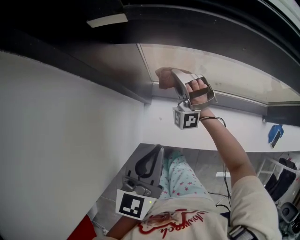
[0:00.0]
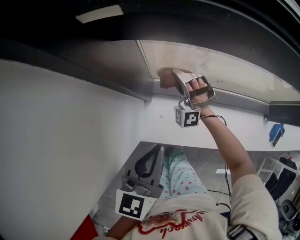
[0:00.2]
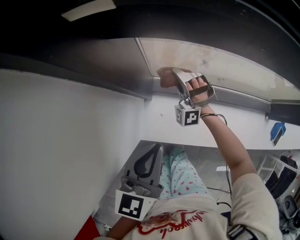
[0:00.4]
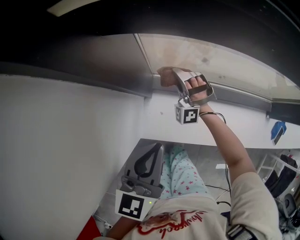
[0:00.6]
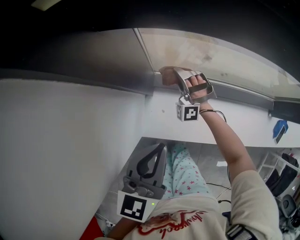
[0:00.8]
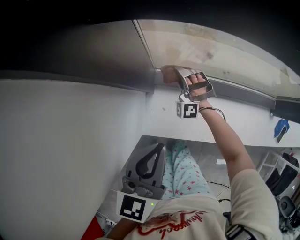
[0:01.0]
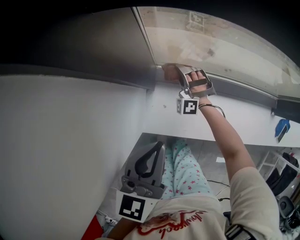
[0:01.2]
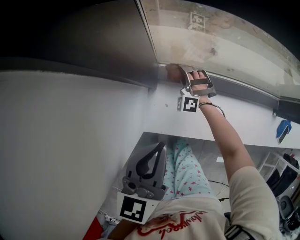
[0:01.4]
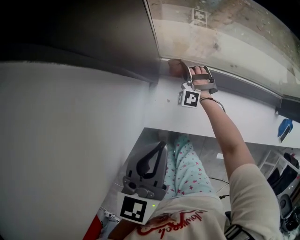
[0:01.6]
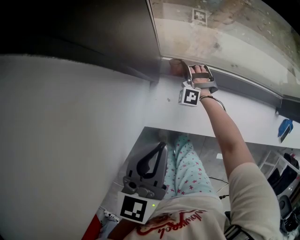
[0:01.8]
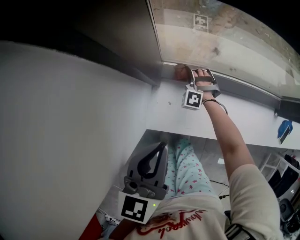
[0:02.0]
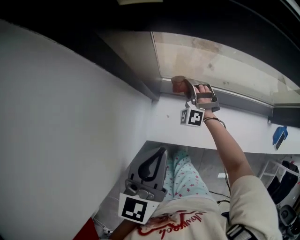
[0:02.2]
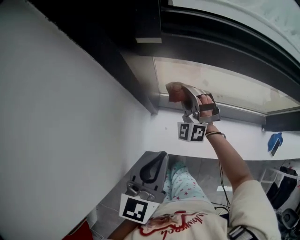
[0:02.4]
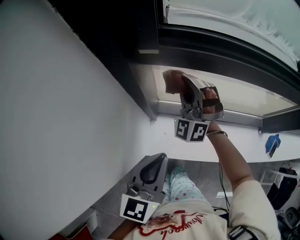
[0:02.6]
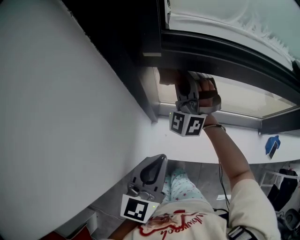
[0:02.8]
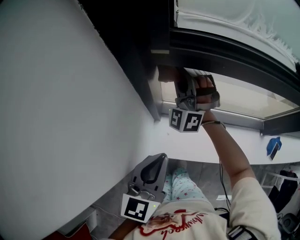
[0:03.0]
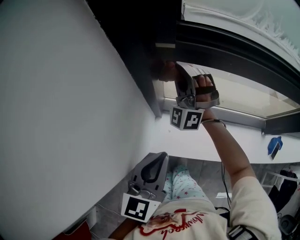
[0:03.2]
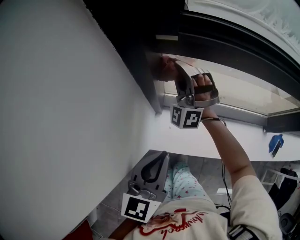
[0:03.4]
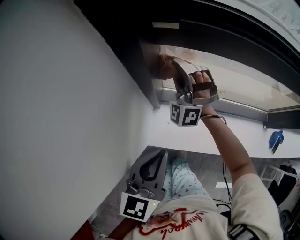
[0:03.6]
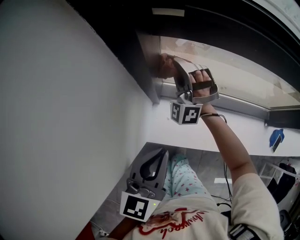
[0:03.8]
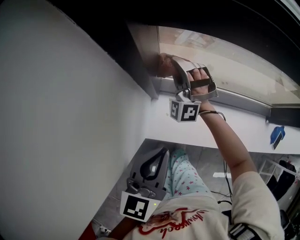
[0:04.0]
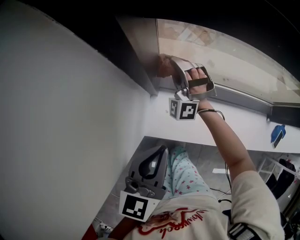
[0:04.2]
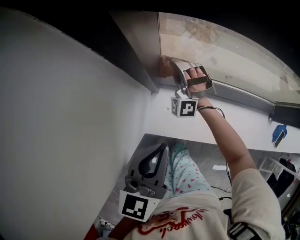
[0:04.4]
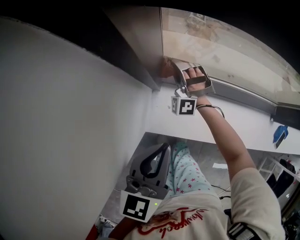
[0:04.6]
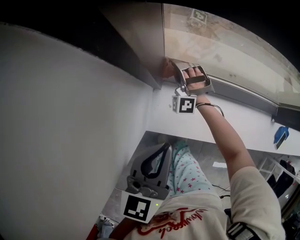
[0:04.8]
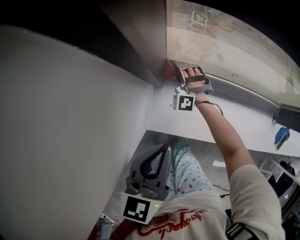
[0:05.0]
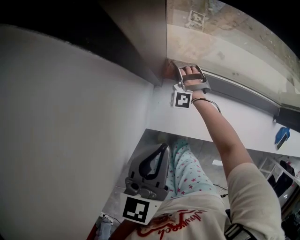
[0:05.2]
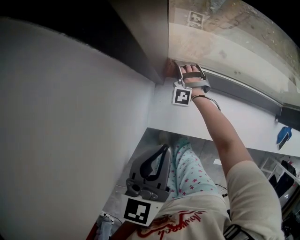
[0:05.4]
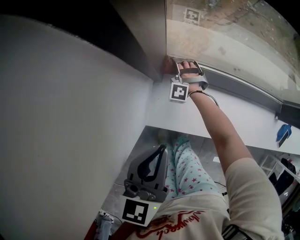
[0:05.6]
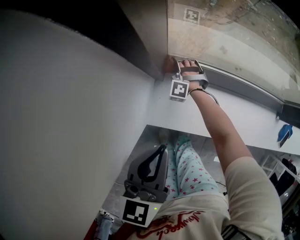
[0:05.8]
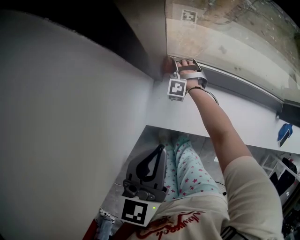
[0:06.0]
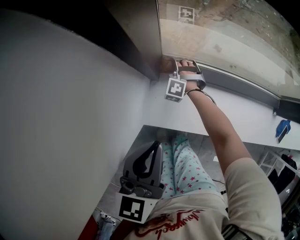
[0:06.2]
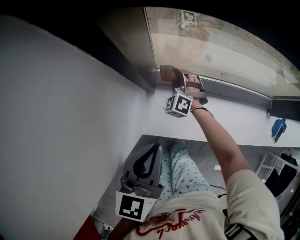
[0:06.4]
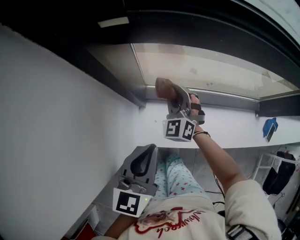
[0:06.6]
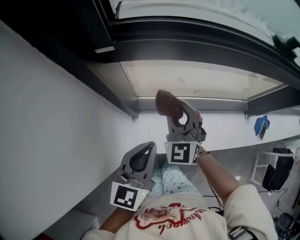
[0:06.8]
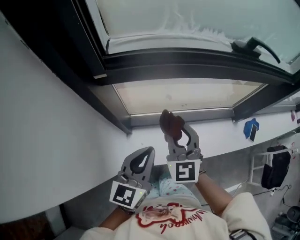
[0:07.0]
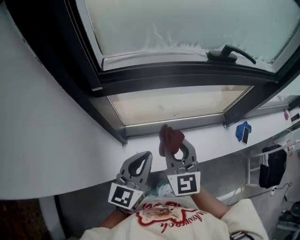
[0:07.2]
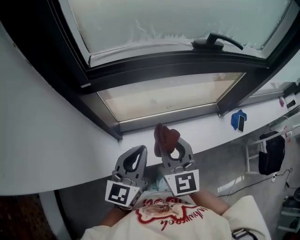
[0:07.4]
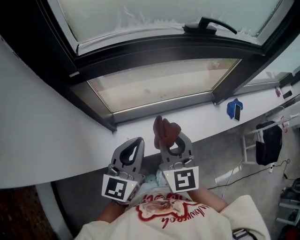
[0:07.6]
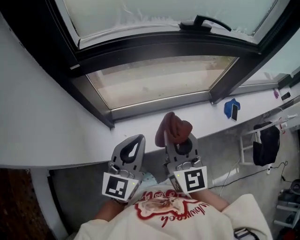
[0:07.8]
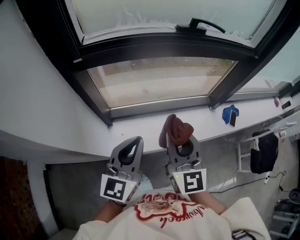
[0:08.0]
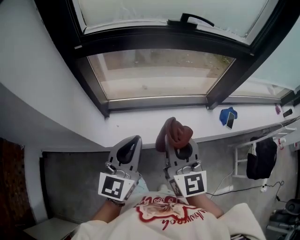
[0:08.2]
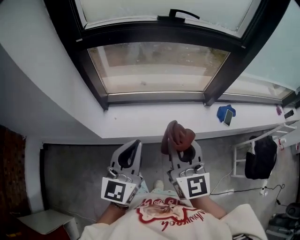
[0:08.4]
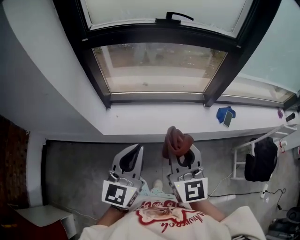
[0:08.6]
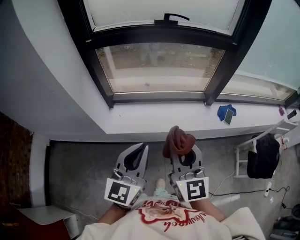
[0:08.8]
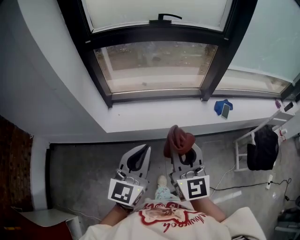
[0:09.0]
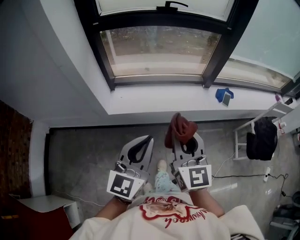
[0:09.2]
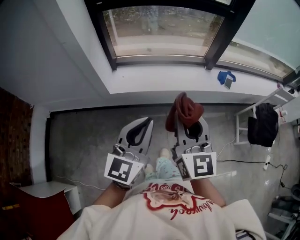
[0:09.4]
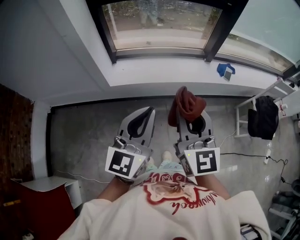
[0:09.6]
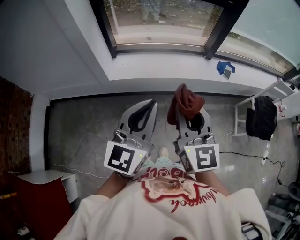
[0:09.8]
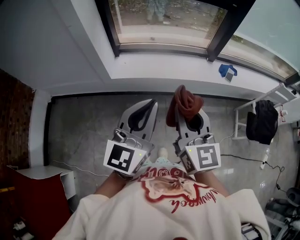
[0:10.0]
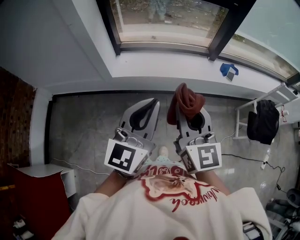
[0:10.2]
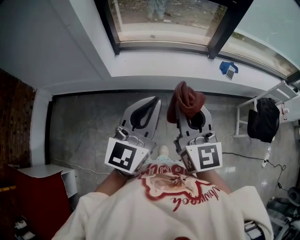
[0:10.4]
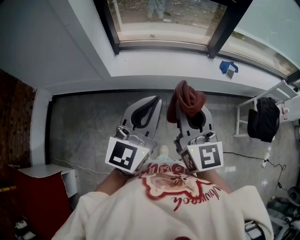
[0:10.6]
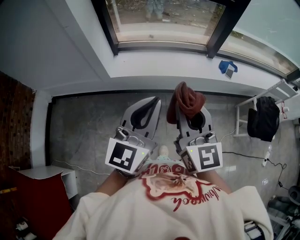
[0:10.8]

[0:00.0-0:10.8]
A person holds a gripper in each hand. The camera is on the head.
0:00.0 to 0:01.6: The right gripper heads downward, covering about 20 cm, and turns by about 20 degrees; the left gripper moves downward, approximately 5 cm.
0:01.6 to 0:03.0: The left gripper moves upward, about 10 cm, while the right gripper moves upward, roughly 40 cm, and tips its fingers upward by about 30 degrees.
0:03.0 to 0:04.6: The right gripper travels downward by about 30 cm, and rotates approximately 20 degrees. Meanwhile the left gripper is displaced downward by some 10 cm.
0:04.6 to 0:06.2: The right gripper goes roughly 15 cm downward, and swivels some 30 degrees.
0:06.2 to 0:07.8: The right gripper shifts about 60 cm upward, to the right and backward, and twists roughly 80 degrees clockwise, seen from behind, while the left gripper moves upward and to the right, some 25 cm, and changes its angle by about 40 degrees.
0:07.8 to 0:09.2: The grippers both shift backward and to the right by roughly 40 cm.
0:09.2 to 0:10.8: Both grippers move backward, roughly 10 cm.

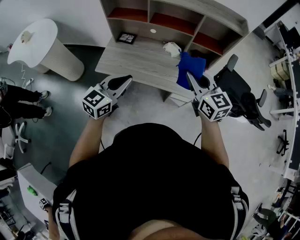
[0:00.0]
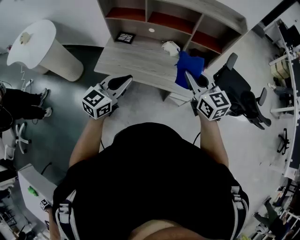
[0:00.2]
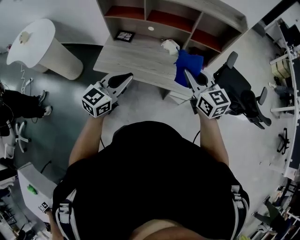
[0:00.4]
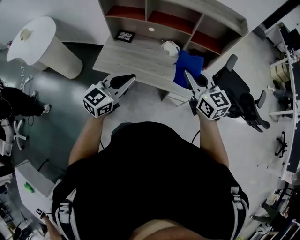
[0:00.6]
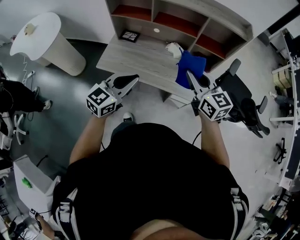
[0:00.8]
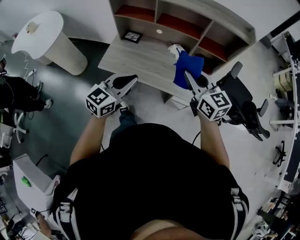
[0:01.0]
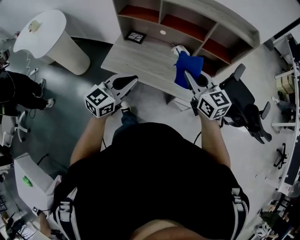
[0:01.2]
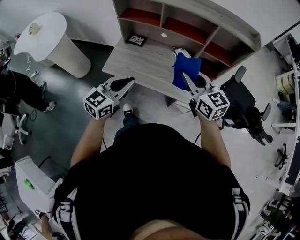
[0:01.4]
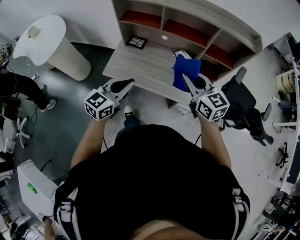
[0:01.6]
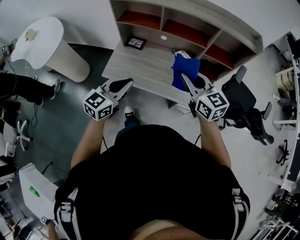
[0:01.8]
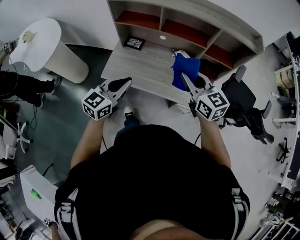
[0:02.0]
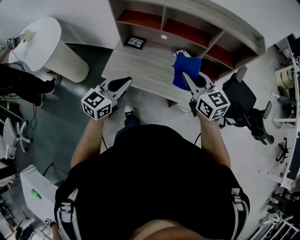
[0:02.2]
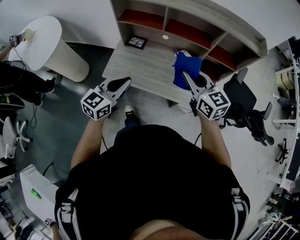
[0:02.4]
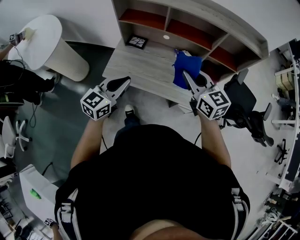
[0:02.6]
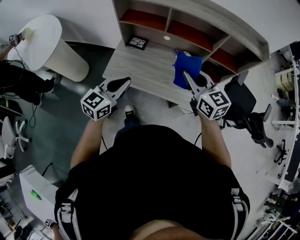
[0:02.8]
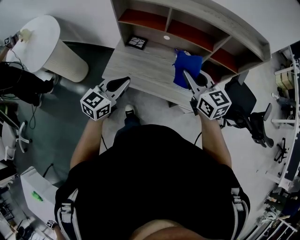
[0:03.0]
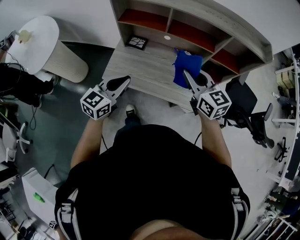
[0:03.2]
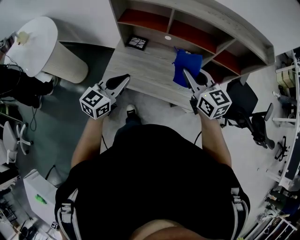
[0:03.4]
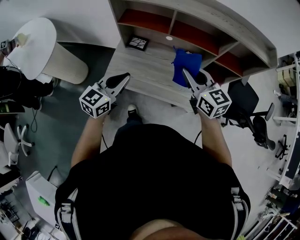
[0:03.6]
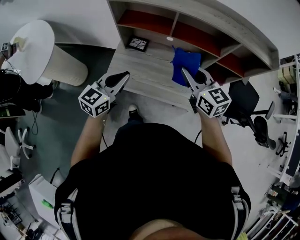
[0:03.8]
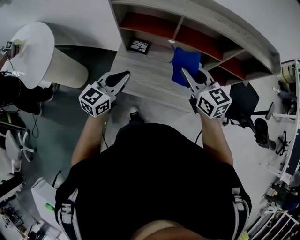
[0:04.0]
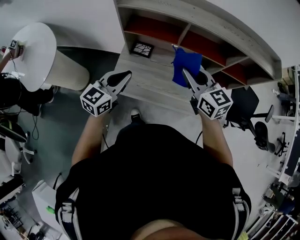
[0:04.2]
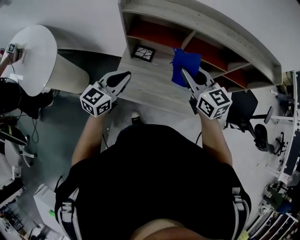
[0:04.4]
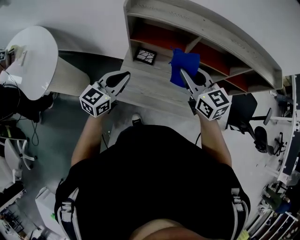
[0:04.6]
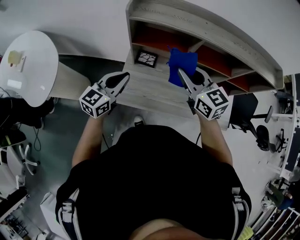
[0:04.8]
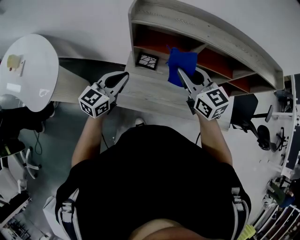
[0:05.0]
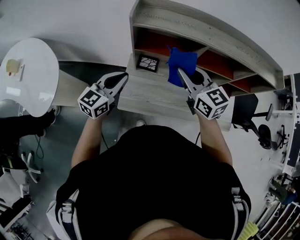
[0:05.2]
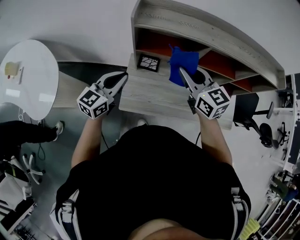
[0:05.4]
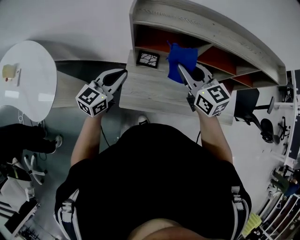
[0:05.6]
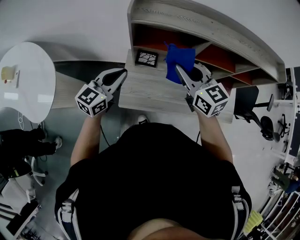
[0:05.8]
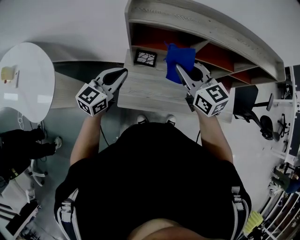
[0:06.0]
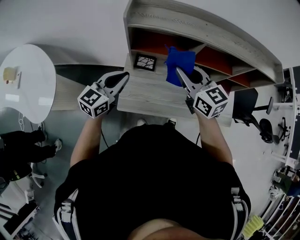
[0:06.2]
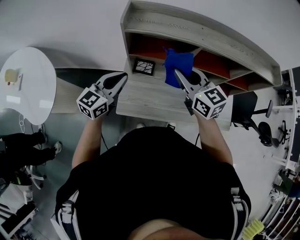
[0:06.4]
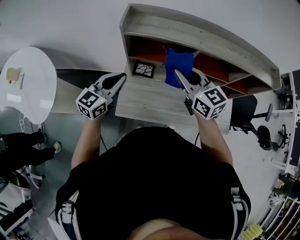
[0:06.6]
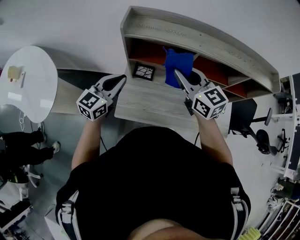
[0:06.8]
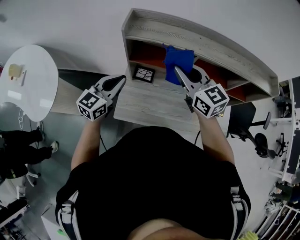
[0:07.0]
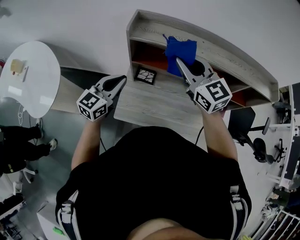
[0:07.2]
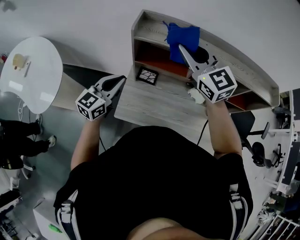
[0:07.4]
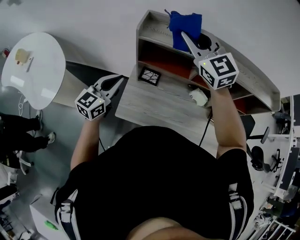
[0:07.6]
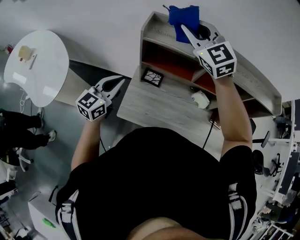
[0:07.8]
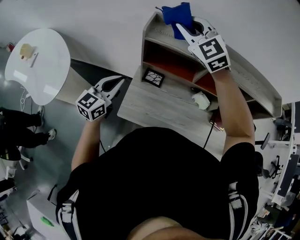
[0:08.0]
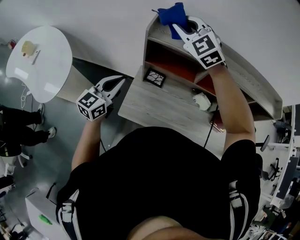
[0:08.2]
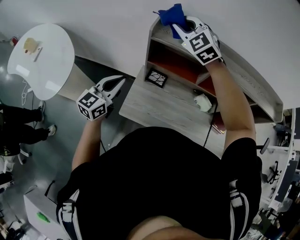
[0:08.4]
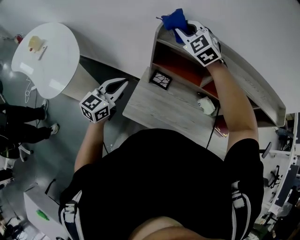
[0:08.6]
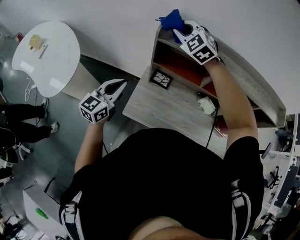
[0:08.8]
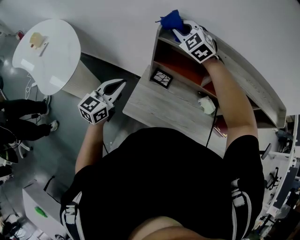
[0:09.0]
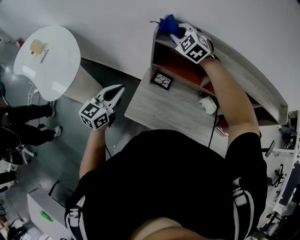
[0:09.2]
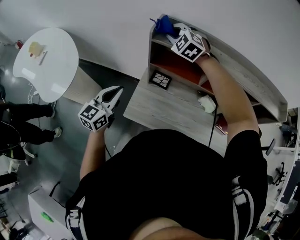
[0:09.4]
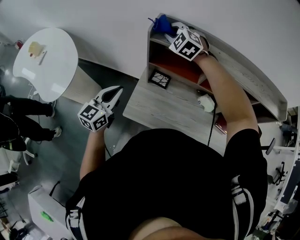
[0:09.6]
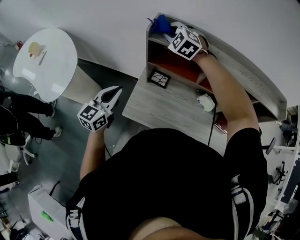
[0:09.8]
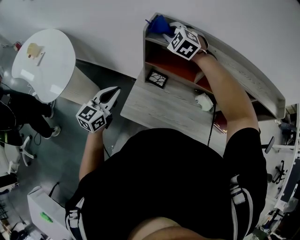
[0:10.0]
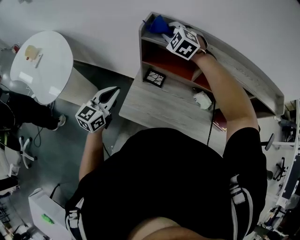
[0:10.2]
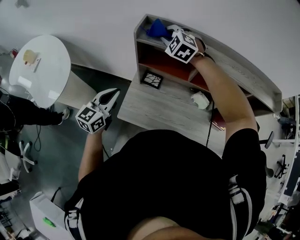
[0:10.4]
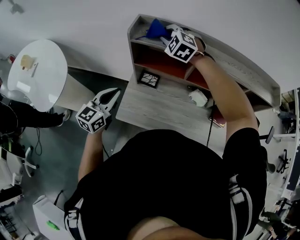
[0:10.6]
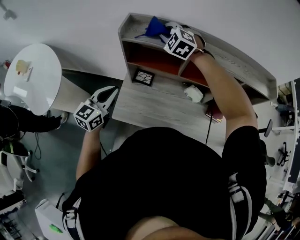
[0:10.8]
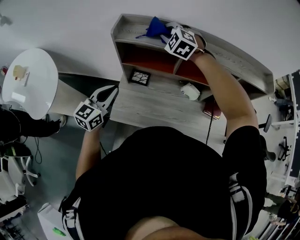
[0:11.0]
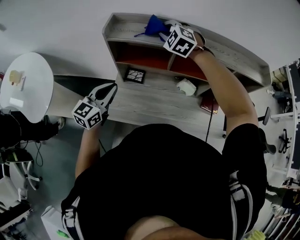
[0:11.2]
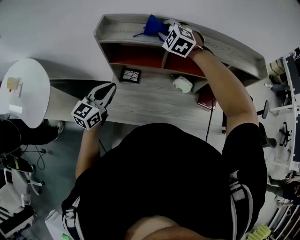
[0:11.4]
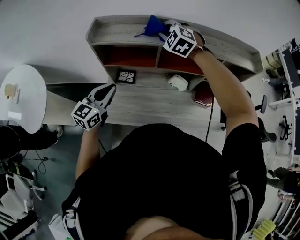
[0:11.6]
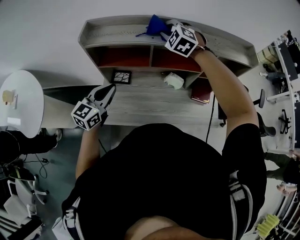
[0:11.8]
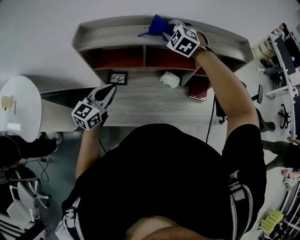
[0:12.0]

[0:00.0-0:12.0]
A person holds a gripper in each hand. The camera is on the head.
0:00.0 to 0:01.6: The left gripper shifts by about 5 cm; the right gripper travels to the left and forward by approximately 10 cm.
0:01.6 to 0:03.0: The left gripper goes some 10 cm forward and to the left. The right gripper travels forward by approximately 5 cm.
0:03.0 to 0:04.4: Both grippers move forward and to the left, approximately 20 cm.
0:04.4 to 0:06.0: The grippers both shift to the left and forward by approximately 10 cm.
0:06.0 to 0:07.6: The right gripper moves upward and forward, some 20 cm, and swivels about 30 degrees.
0:07.6 to 0:09.0: The left gripper ends up approximately 5 cm from where it was; the right gripper moves to the left, forward and downward, some 15 cm, and swivels about 30 degrees.
0:09.0 to 0:10.4: The right gripper shifts roughly 5 cm to the right.
0:10.4 to 0:12.0: The left gripper travels to the right by approximately 20 cm, while the right gripper shifts roughly 30 cm to the right, and rotates some 20 degrees.

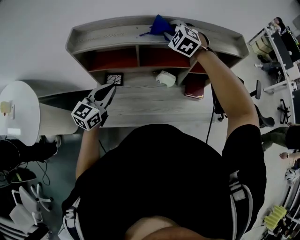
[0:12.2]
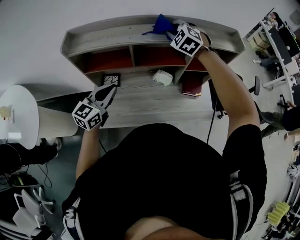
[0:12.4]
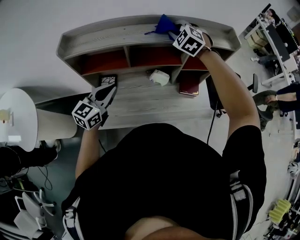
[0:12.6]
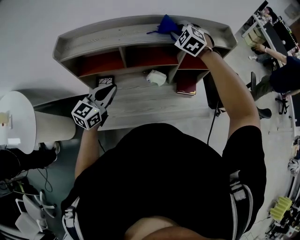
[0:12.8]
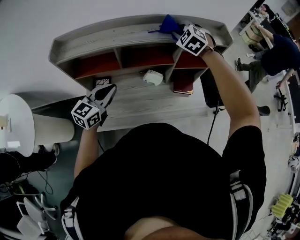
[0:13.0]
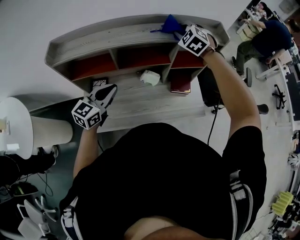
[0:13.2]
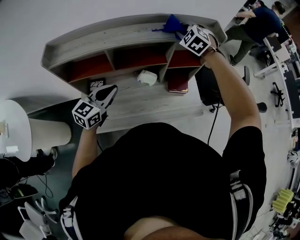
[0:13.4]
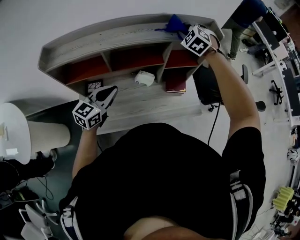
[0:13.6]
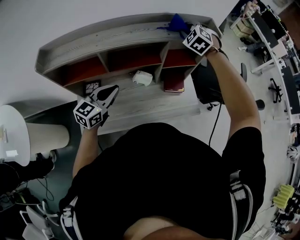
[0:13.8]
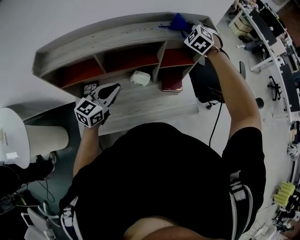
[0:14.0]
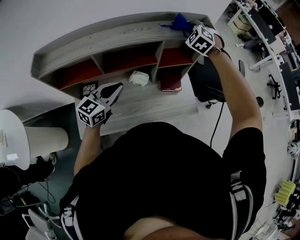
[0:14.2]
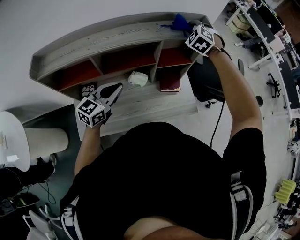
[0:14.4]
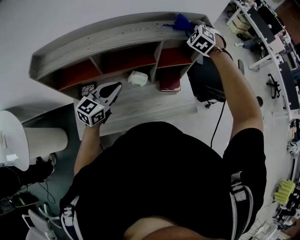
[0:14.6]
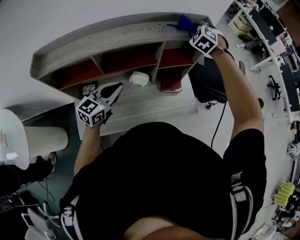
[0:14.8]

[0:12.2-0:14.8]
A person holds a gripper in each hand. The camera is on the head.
0:12.2 to 0:13.4: The right gripper moves to the right, approximately 20 cm. Meanwhile the left gripper moves to the right, some 10 cm.
0:13.4 to 0:14.8: The left gripper moves to the right and forward, approximately 10 cm; the right gripper heads to the right and forward, covering about 15 cm.
